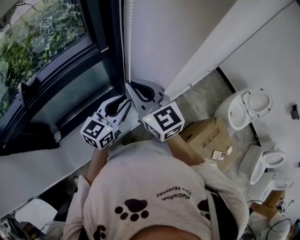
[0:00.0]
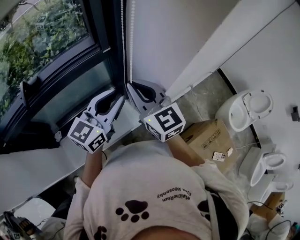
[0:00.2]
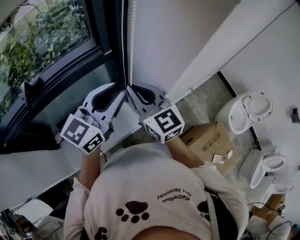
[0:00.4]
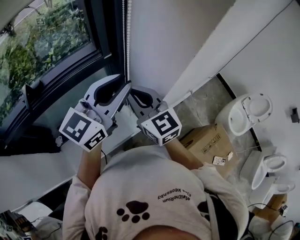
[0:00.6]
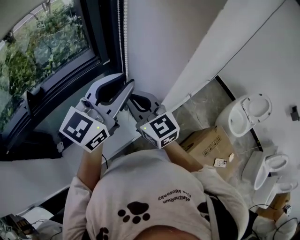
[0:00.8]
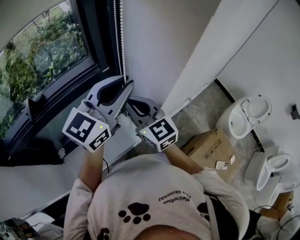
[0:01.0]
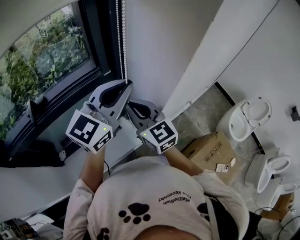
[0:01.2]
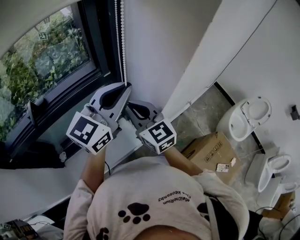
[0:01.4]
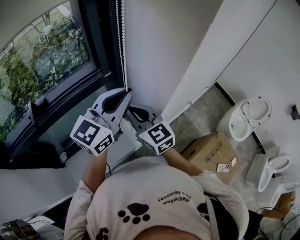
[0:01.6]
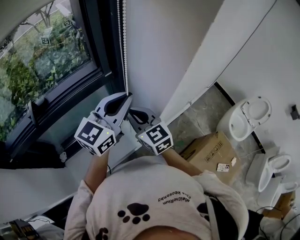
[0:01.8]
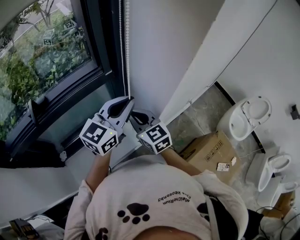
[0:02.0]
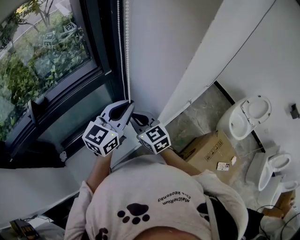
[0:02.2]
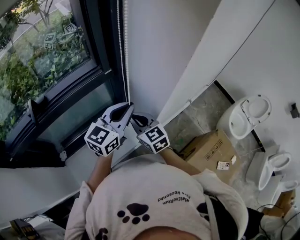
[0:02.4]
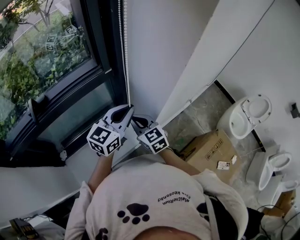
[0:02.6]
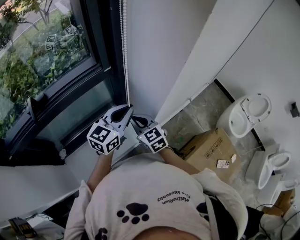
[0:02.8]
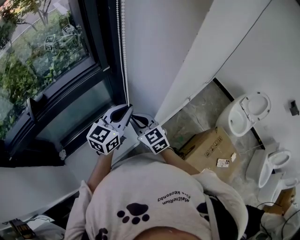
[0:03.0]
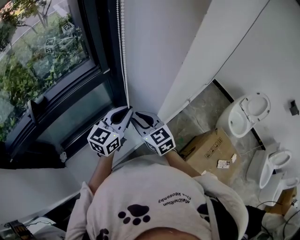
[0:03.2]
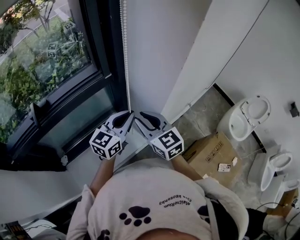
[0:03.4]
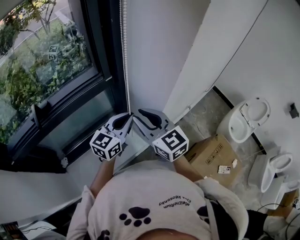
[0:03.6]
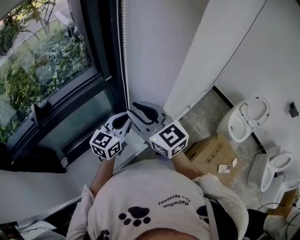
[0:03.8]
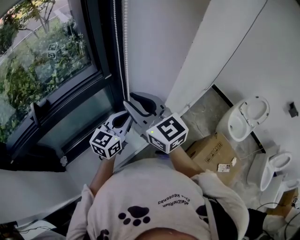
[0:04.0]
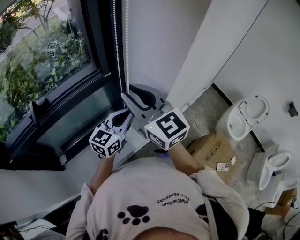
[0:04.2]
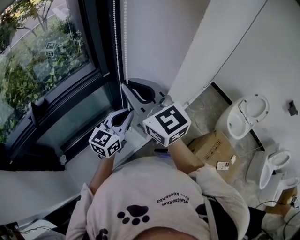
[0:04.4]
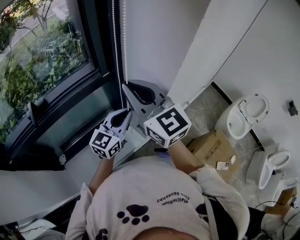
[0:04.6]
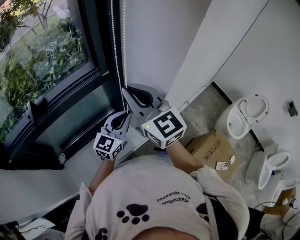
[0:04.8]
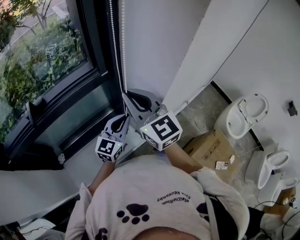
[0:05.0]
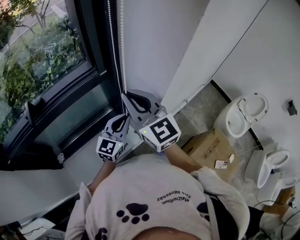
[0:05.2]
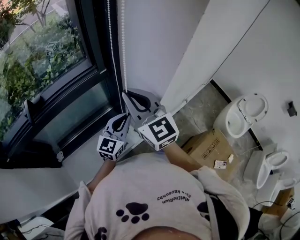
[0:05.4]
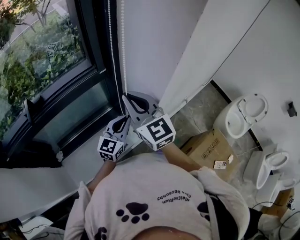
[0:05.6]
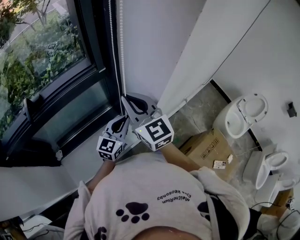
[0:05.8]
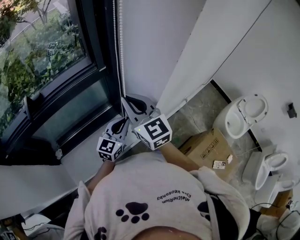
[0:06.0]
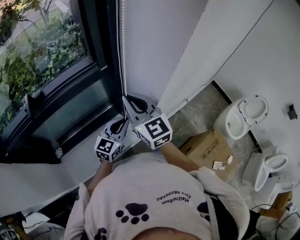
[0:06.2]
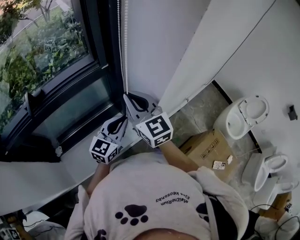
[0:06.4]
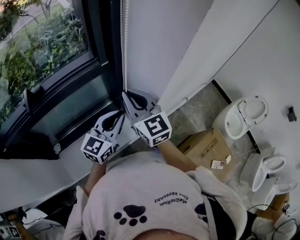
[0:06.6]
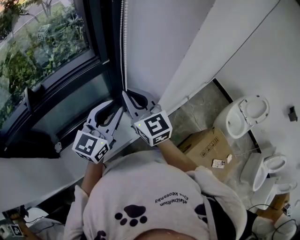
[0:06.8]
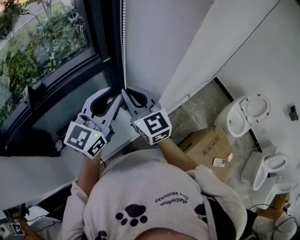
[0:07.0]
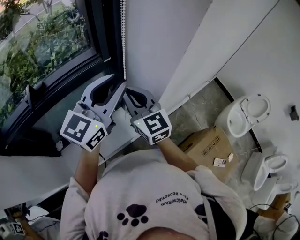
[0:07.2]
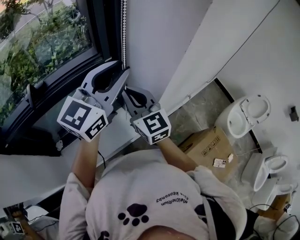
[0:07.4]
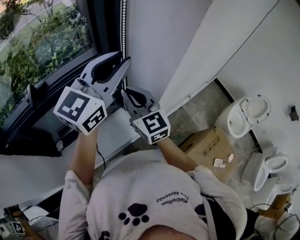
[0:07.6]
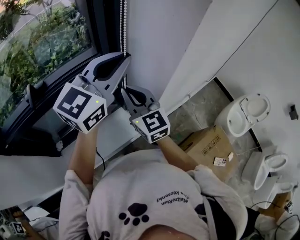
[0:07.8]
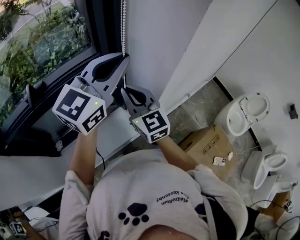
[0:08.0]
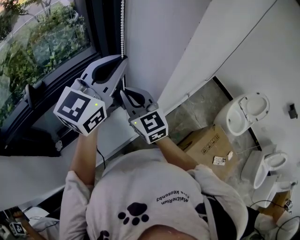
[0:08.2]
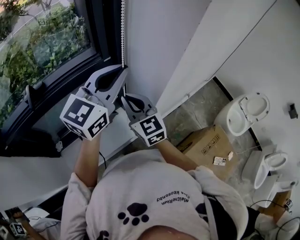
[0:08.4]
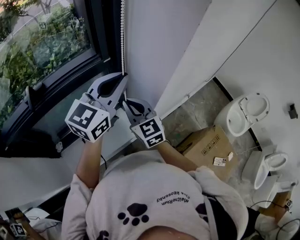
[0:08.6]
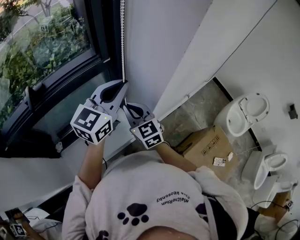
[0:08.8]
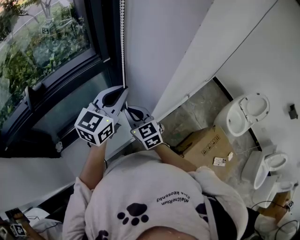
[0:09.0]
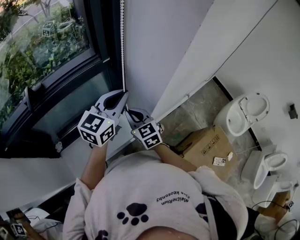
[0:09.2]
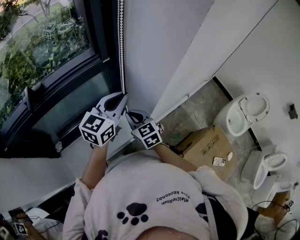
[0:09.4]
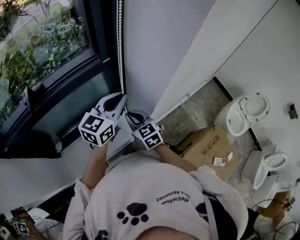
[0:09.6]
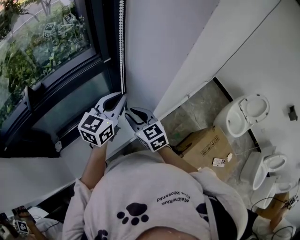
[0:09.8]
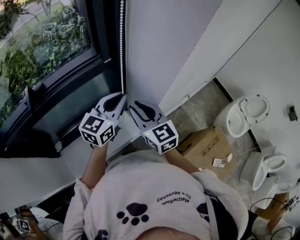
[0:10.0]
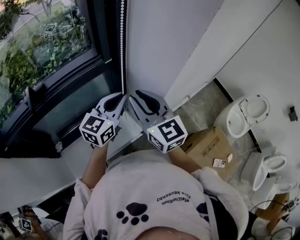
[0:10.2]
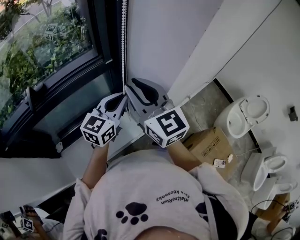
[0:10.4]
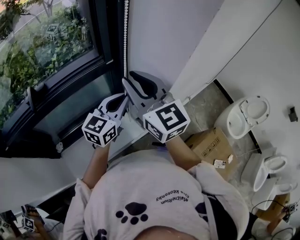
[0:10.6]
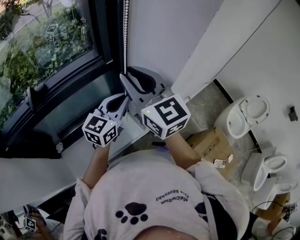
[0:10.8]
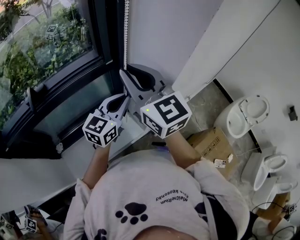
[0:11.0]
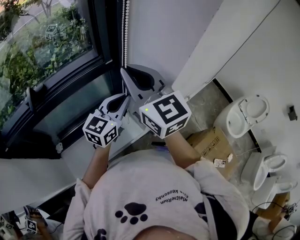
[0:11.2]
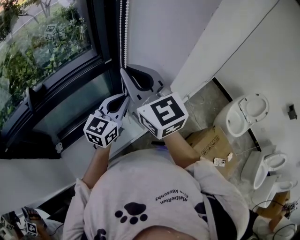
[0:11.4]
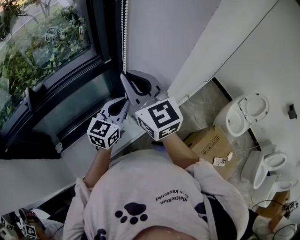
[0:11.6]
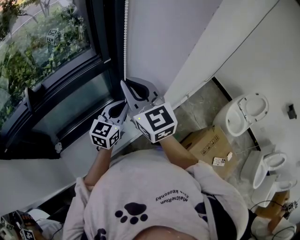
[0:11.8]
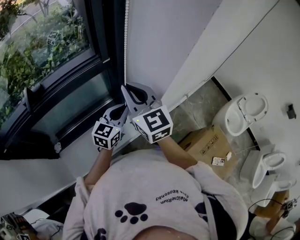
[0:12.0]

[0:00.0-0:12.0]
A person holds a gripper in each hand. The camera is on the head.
0:00.0 to 0:01.6: The left gripper moves upward, about 15 cm.
0:01.6 to 0:03.0: The two grippers go about 15 cm downward.
0:03.0 to 0:04.4: The right gripper goes some 25 cm upward, and swivels roughly 20 degrees.
0:04.4 to 0:06.0: Both grippers travel together downward, approximately 10 cm.
0:06.0 to 0:07.6: The left gripper is displaced upward by roughly 30 cm.
0:07.6 to 0:09.0: The two grippers go some 15 cm downward.
0:09.0 to 0:10.4: The right gripper shifts some 20 cm upward, and opens its fingers.
0:10.4 to 0:12.0: The right gripper ends up about 5 cm from where it was, and closes its fingers. The left gripper heads downward, covering some 10 cm.

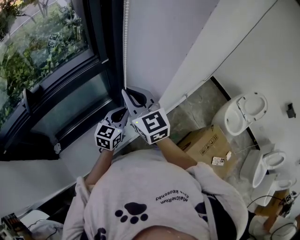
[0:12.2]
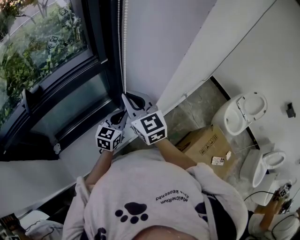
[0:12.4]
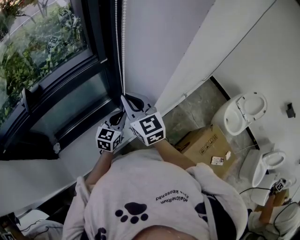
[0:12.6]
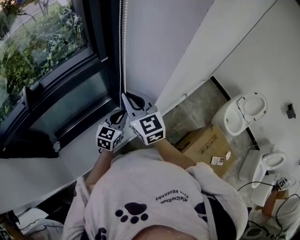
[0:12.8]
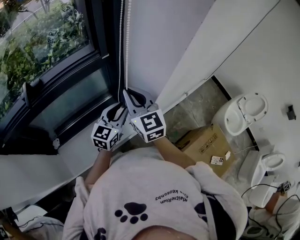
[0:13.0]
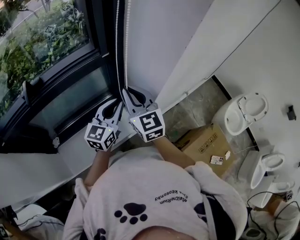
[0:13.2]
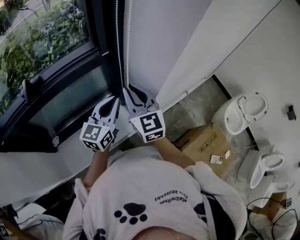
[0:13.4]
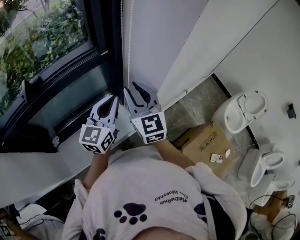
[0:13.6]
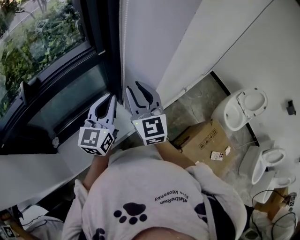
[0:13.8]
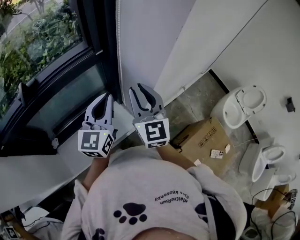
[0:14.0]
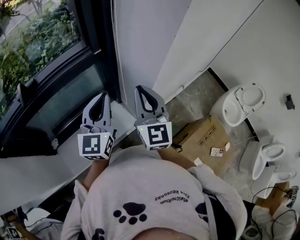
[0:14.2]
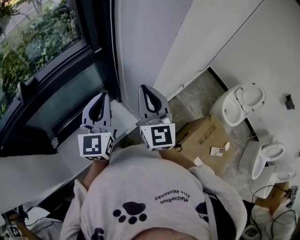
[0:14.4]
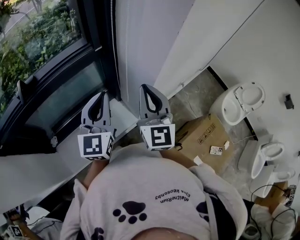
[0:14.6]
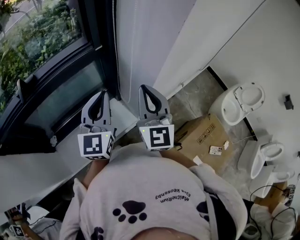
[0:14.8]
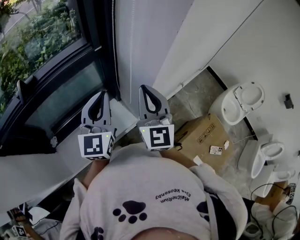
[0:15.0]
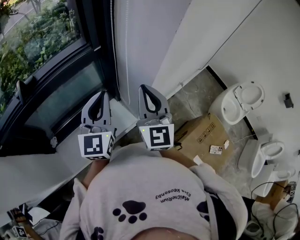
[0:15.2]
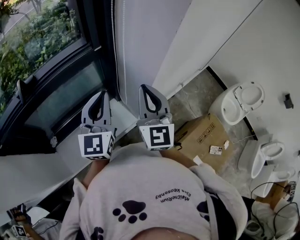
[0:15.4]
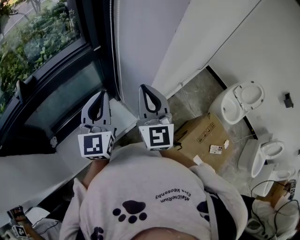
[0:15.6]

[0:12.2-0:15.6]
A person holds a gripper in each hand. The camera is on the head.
0:12.2 to 0:13.8: The left gripper is displaced upward by approximately 10 cm, and opens, then closes once more. The right gripper opens up.
0:13.8 to 0:15.6: The right gripper ends up about 5 cm from where it was, and closes its fingers.

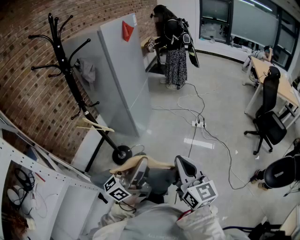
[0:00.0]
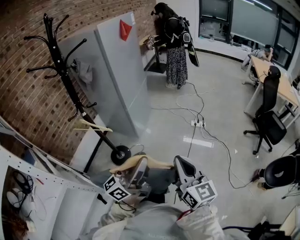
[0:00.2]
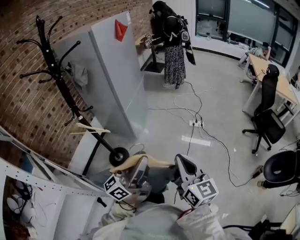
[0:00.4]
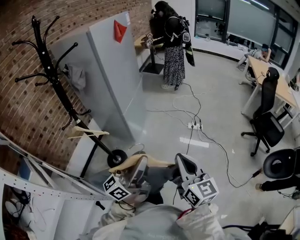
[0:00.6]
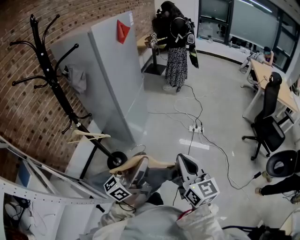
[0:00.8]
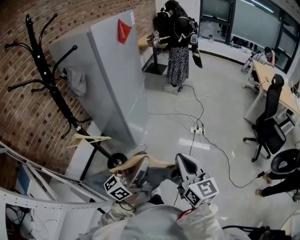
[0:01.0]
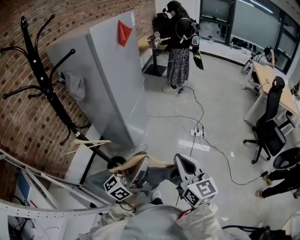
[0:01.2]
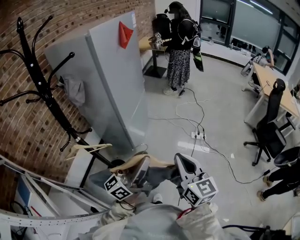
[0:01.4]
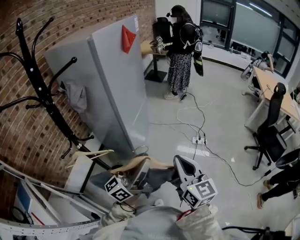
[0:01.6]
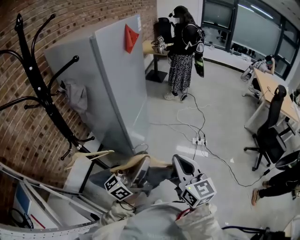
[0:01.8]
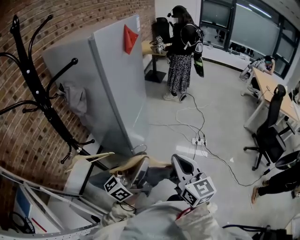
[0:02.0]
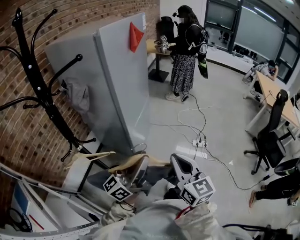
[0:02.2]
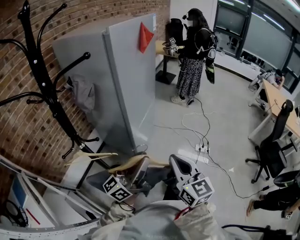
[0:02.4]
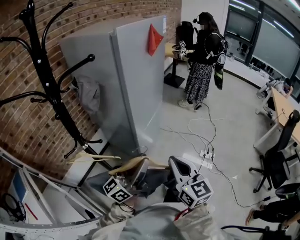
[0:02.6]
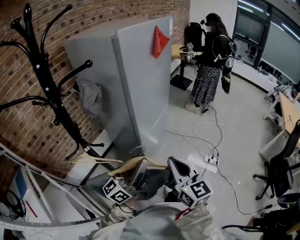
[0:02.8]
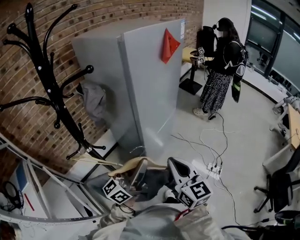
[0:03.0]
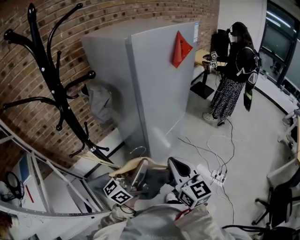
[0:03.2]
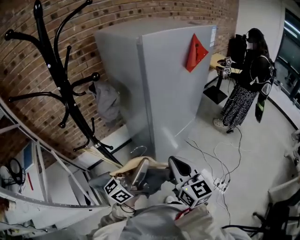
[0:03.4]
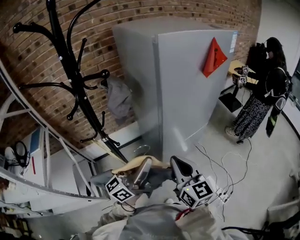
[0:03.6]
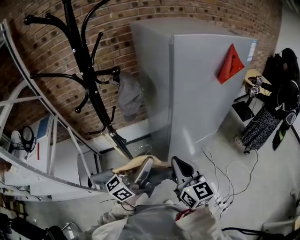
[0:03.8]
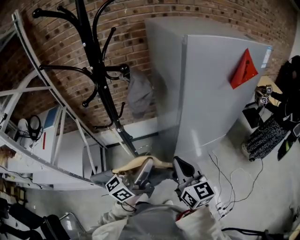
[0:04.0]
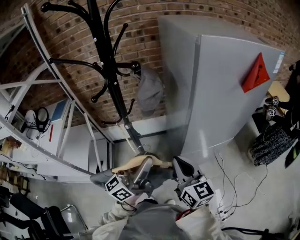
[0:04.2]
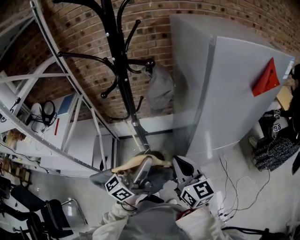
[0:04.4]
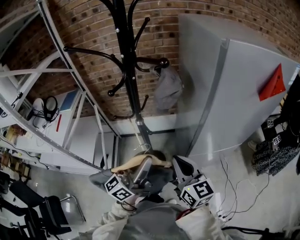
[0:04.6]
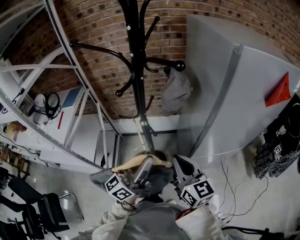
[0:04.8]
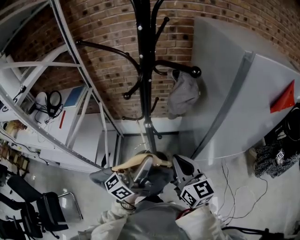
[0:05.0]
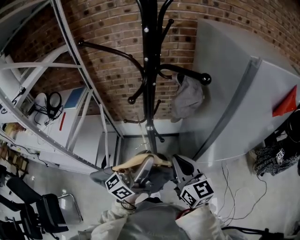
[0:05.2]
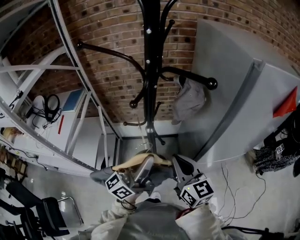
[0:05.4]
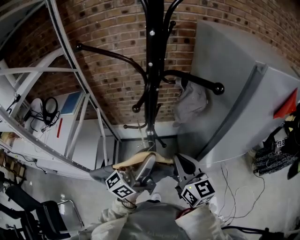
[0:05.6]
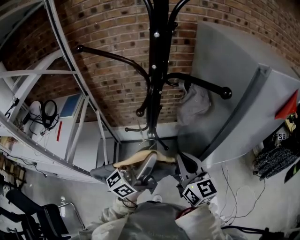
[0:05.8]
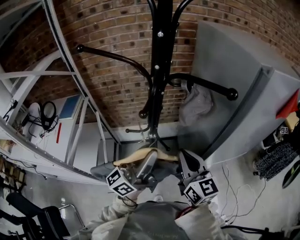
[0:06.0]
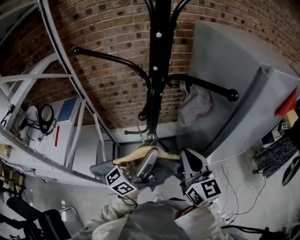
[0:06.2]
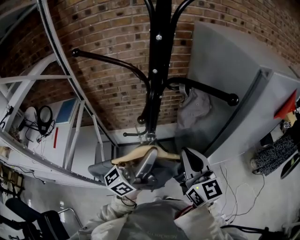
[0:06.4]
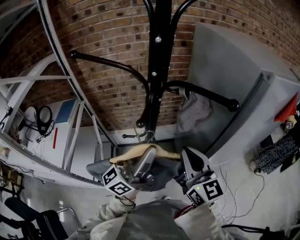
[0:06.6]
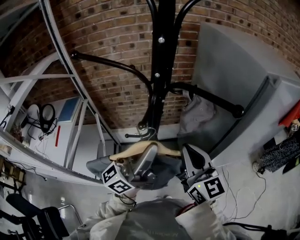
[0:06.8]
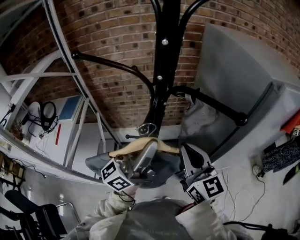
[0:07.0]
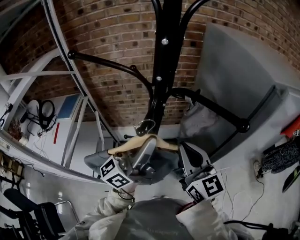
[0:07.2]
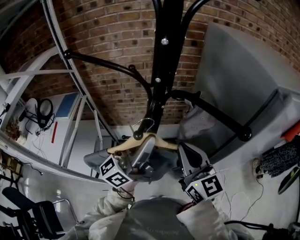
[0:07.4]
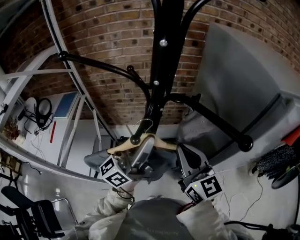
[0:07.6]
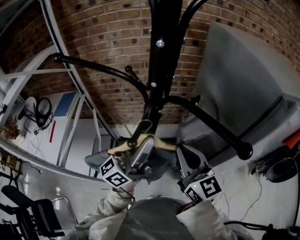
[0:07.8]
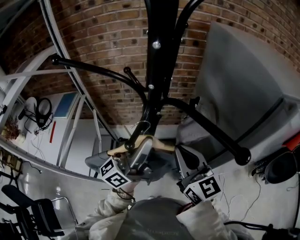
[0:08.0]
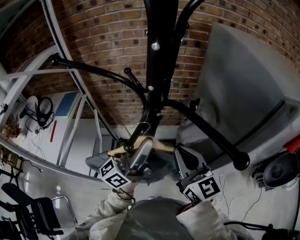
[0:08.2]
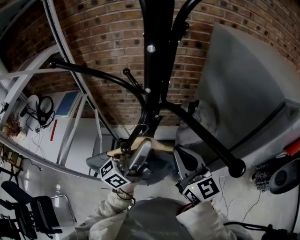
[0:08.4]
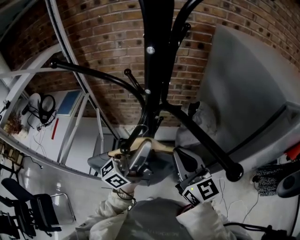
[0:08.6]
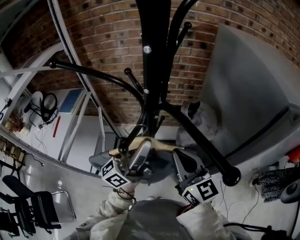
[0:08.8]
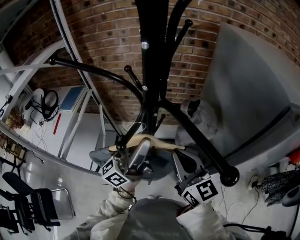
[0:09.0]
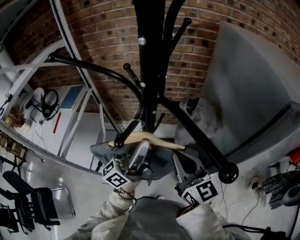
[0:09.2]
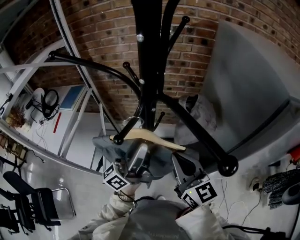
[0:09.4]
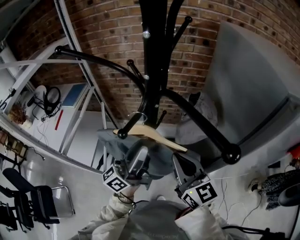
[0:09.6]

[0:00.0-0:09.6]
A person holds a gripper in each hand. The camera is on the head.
0:00.0 to 0:01.6: The right gripper travels forward and to the left by some 30 cm. Meanwhile the left gripper is displaced forward by about 25 cm.
0:01.6 to 0:03.2: The left gripper shifts by about 20 cm, and turns by some 30 degrees. Meanwhile the right gripper shifts by some 25 cm, and rotates some 30 degrees.
0:03.2 to 0:04.8: The left gripper ends up roughly 10 cm from where it was, and turns by roughly 40 degrees. The right gripper moves some 15 cm, and turns by about 40 degrees.
0:04.8 to 0:06.4: The right gripper is displaced forward, upward and to the left by some 10 cm. The left gripper is displaced forward, to the left and upward by about 15 cm.
0:06.4 to 0:08.0: Both grippers move forward, roughly 10 cm.
0:08.0 to 0:09.6: The left gripper is displaced downward by approximately 5 cm.
